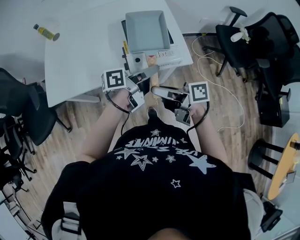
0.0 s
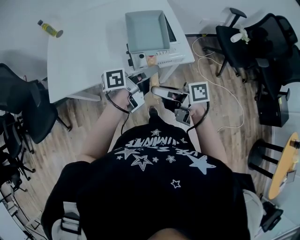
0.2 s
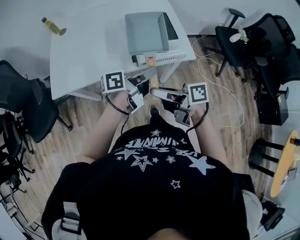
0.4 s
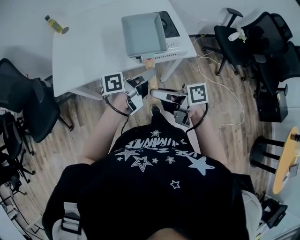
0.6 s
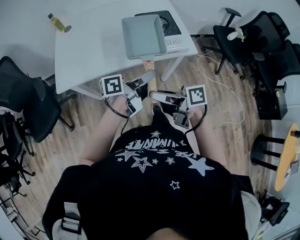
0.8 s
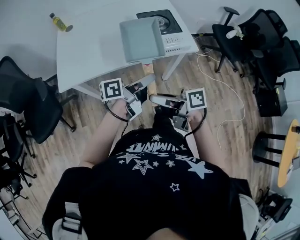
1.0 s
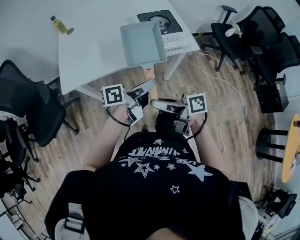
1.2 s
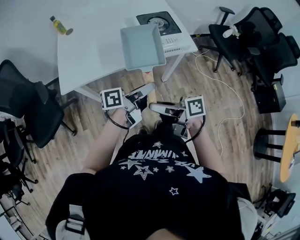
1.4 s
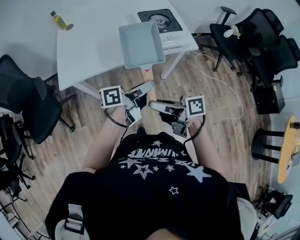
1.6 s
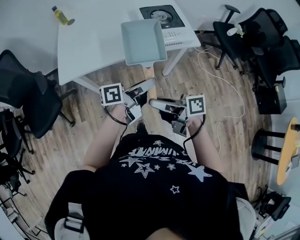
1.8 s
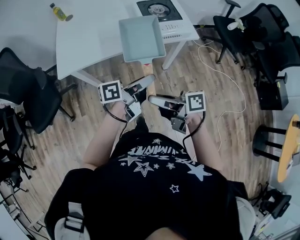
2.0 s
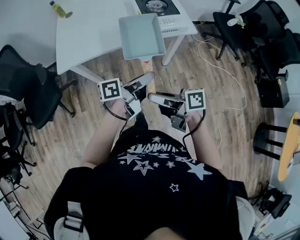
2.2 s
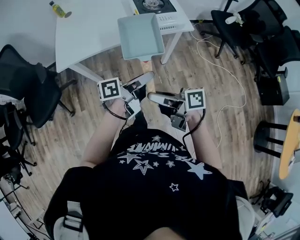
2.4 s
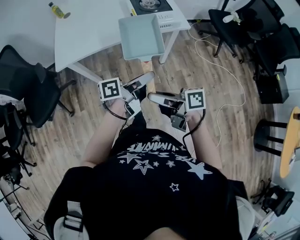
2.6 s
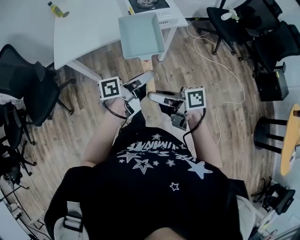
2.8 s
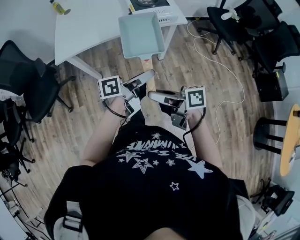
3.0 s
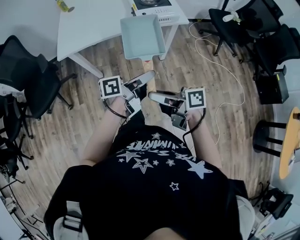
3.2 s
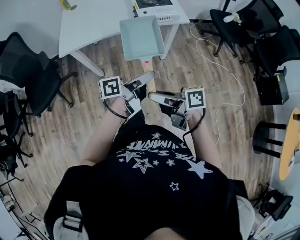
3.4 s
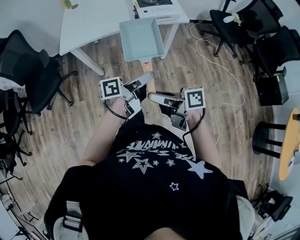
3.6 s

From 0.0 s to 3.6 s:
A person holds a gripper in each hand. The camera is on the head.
From 0.0 s to 1.8 s: The right gripper shifts by approximately 25 cm. Meanwhile the left gripper changes place by about 25 cm.
From 1.8 s to 3.6 s: The right gripper moves roughly 20 cm; the left gripper moves approximately 20 cm.

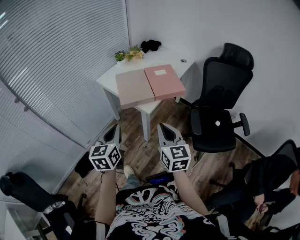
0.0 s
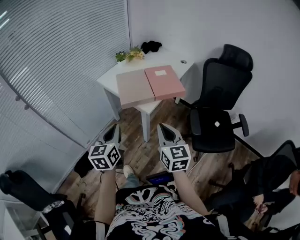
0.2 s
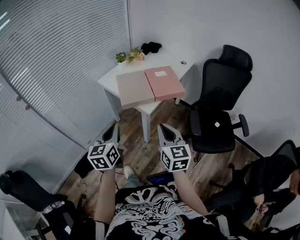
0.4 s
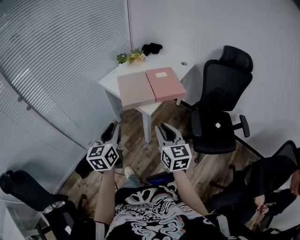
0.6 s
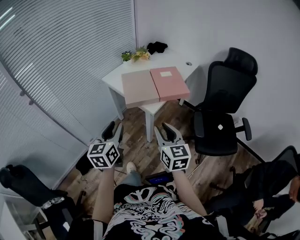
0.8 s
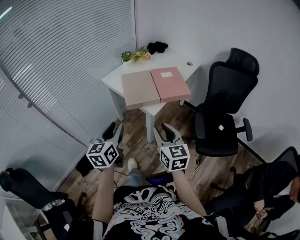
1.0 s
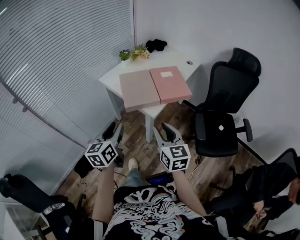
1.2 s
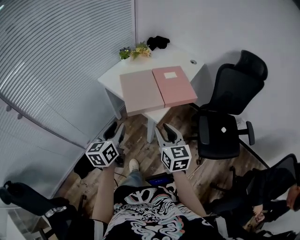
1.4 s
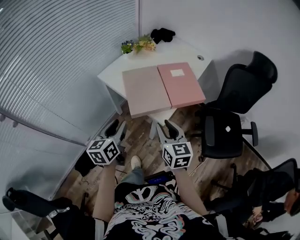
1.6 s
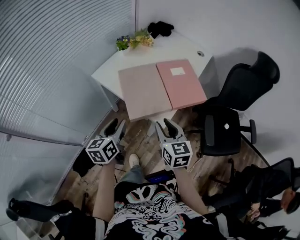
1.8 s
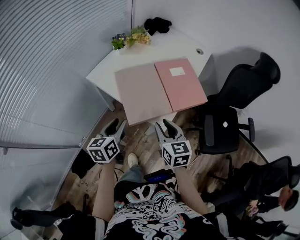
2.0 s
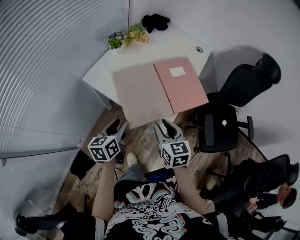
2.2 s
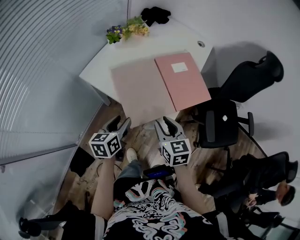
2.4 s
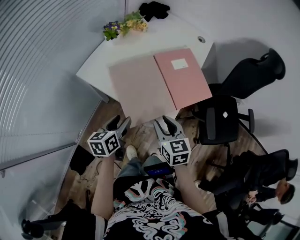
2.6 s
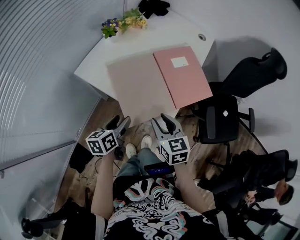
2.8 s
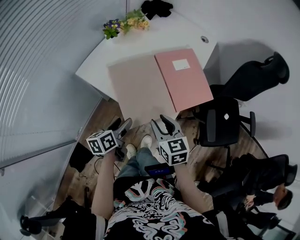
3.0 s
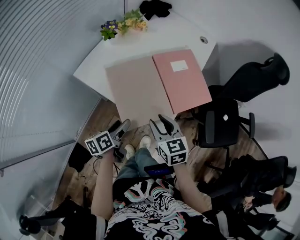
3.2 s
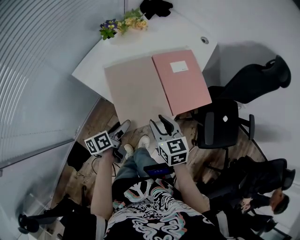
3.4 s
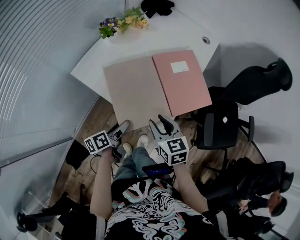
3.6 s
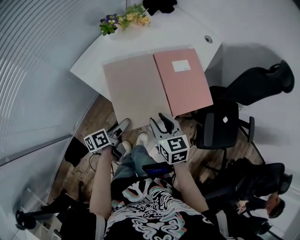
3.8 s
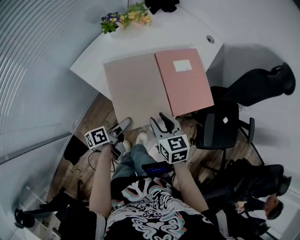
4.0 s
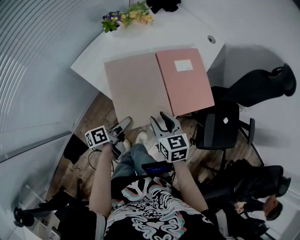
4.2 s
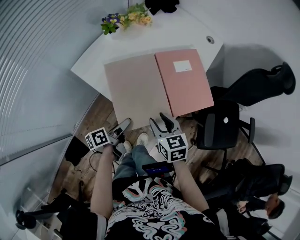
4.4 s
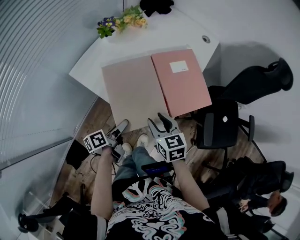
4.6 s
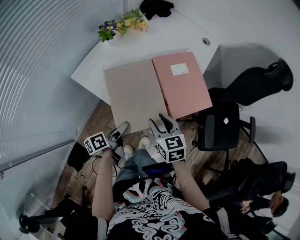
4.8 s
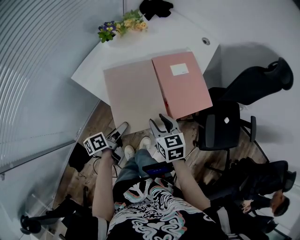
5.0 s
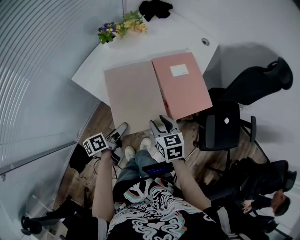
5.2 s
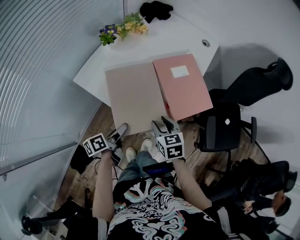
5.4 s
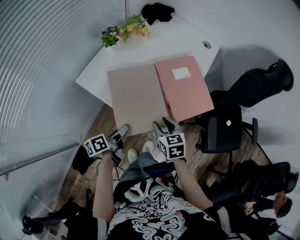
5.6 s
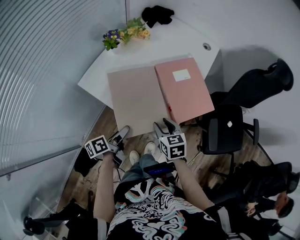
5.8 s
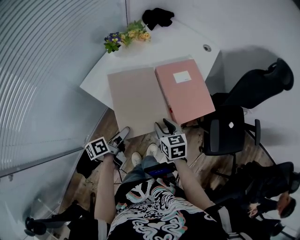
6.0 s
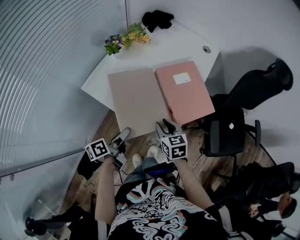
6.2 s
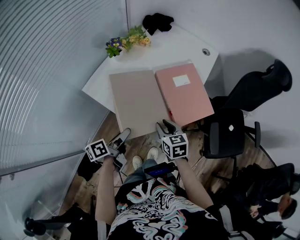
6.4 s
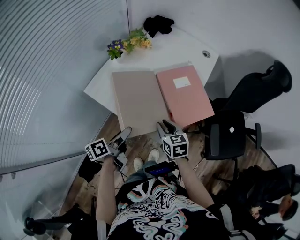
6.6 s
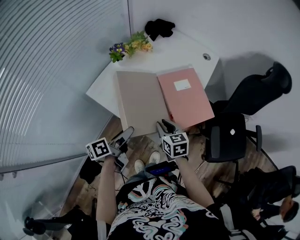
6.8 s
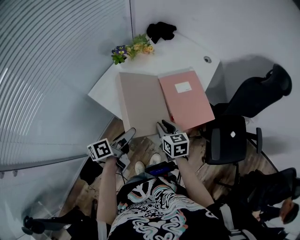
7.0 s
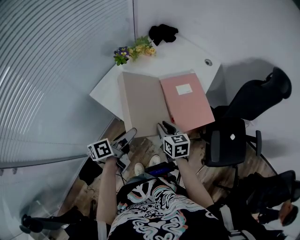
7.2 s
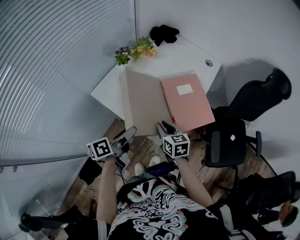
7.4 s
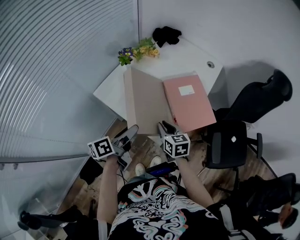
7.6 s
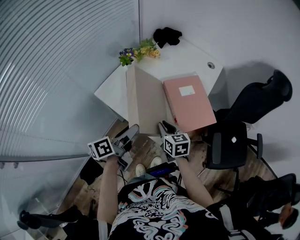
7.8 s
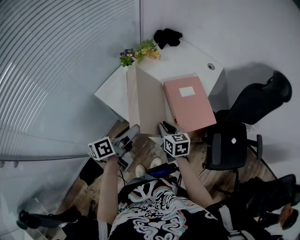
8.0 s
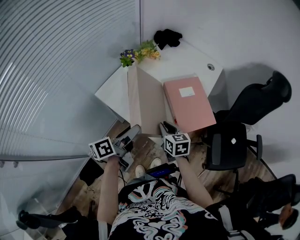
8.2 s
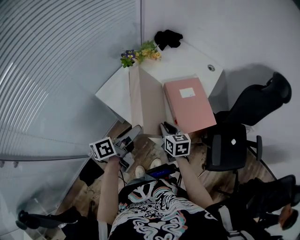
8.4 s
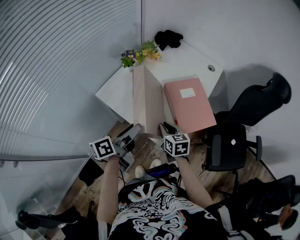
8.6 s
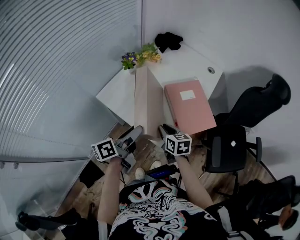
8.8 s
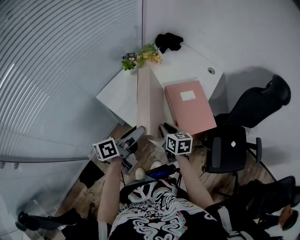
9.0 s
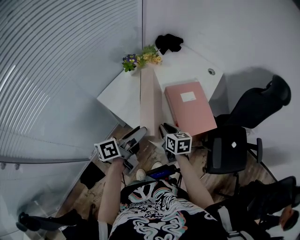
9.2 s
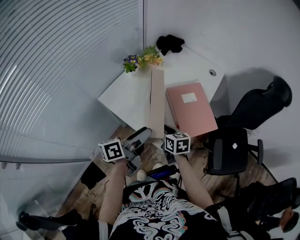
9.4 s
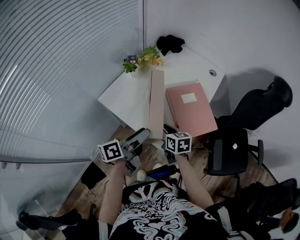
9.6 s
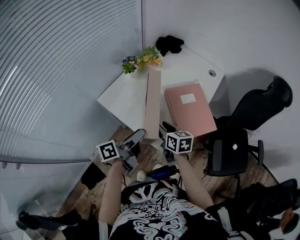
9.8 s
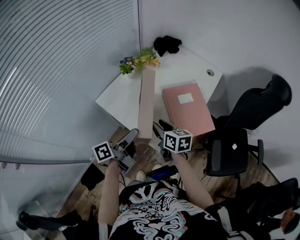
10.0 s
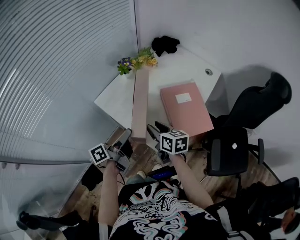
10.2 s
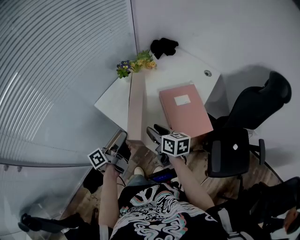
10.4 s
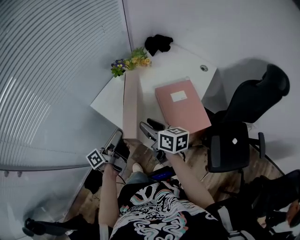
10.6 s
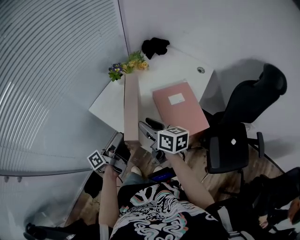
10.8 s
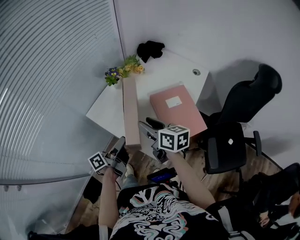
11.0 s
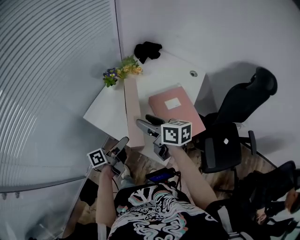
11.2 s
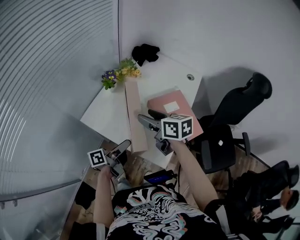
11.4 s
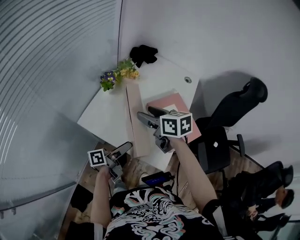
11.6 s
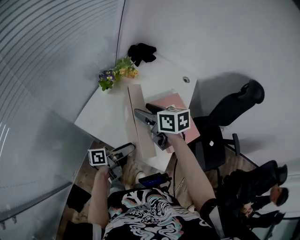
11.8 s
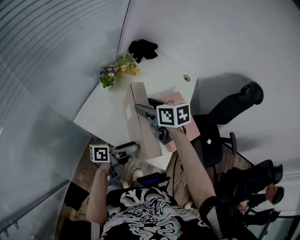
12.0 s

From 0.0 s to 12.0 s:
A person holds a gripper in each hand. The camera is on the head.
From 0.0 s to 1.6 s: The right gripper travels forward, downward and to the left by roughly 20 cm. Meanwhile the left gripper moves forward, approximately 15 cm, and opens up.
From 1.6 s to 3.0 s: The left gripper travels downward and forward by approximately 20 cm, turns by about 30 degrees, and opens up. Meanwhile the right gripper travels forward and downward by some 15 cm.
From 3.0 s to 4.4 s: The left gripper swivels about 30 degrees.
From 4.4 s to 6.0 s: The left gripper ends up approximately 5 cm from where it was.
From 6.0 s to 7.6 s: The left gripper travels upward by approximately 10 cm.
From 7.6 s to 9.0 s: There are only small adjustments of the grippers.
From 9.0 s to 10.4 s: The right gripper travels upward by approximately 5 cm.
From 10.4 s to 12.0 s: The left gripper ends up roughly 10 cm from where it was, and changes its angle by about 40 degrees. Meanwhile the right gripper shifts by some 20 cm, and opens up.

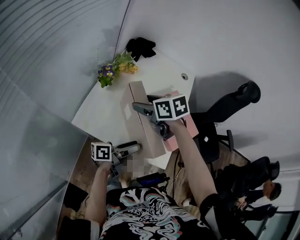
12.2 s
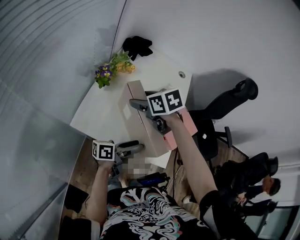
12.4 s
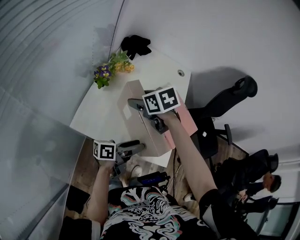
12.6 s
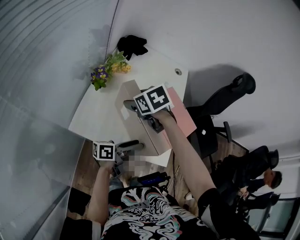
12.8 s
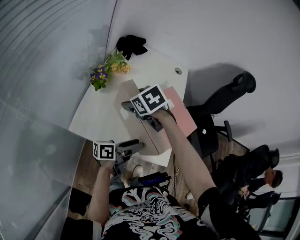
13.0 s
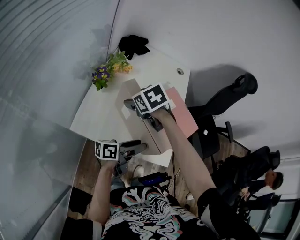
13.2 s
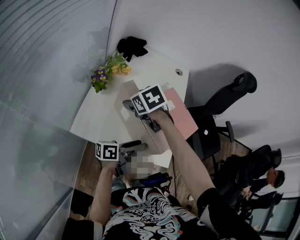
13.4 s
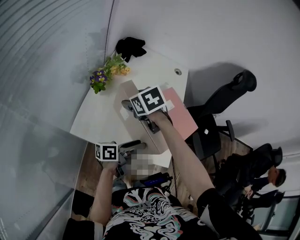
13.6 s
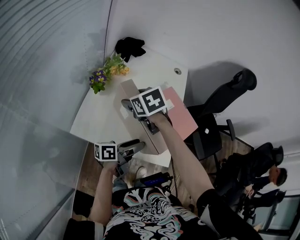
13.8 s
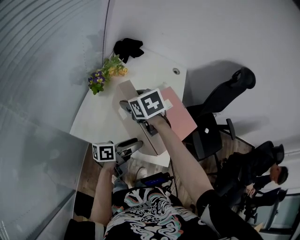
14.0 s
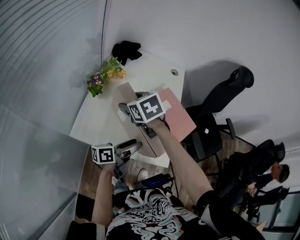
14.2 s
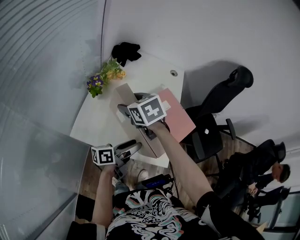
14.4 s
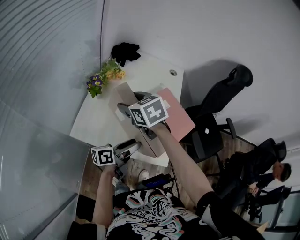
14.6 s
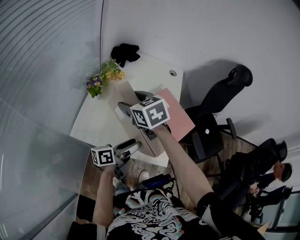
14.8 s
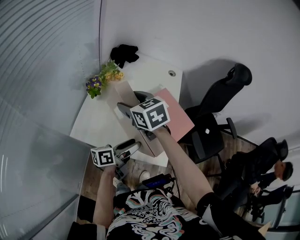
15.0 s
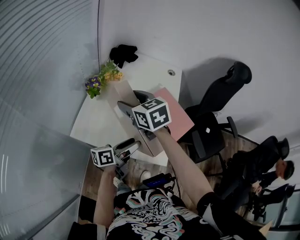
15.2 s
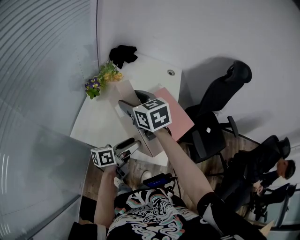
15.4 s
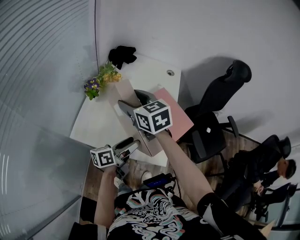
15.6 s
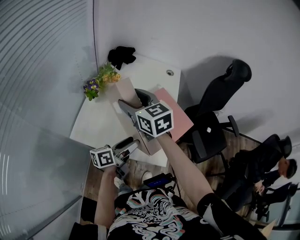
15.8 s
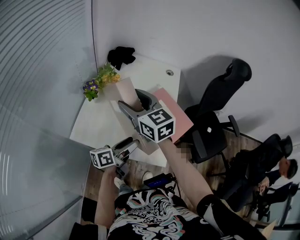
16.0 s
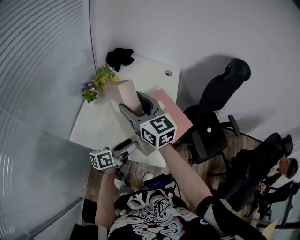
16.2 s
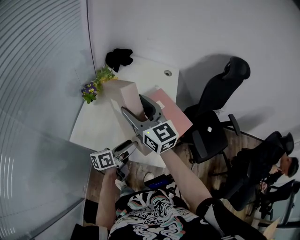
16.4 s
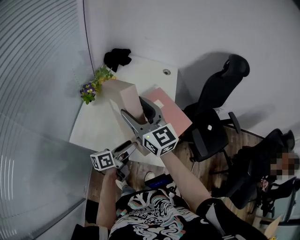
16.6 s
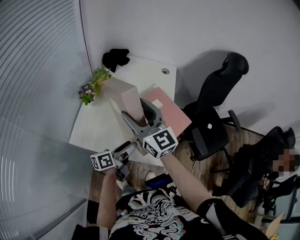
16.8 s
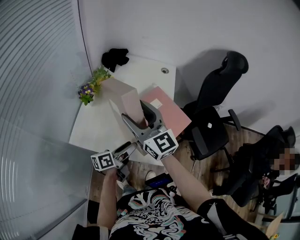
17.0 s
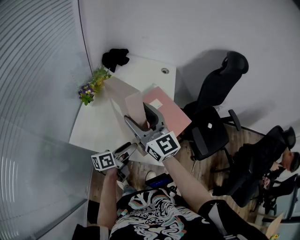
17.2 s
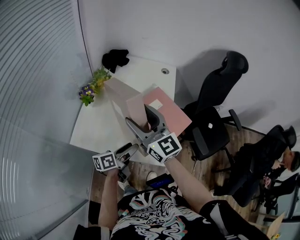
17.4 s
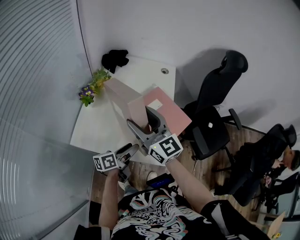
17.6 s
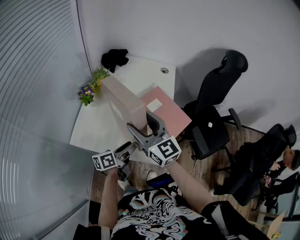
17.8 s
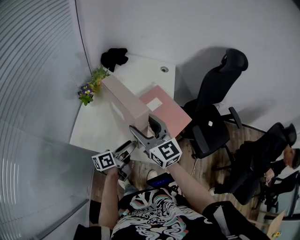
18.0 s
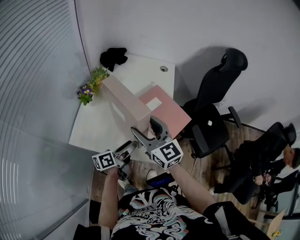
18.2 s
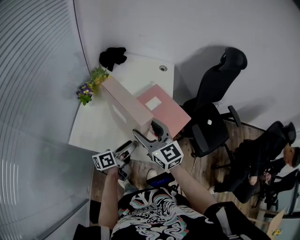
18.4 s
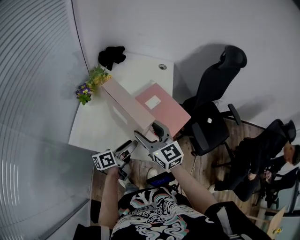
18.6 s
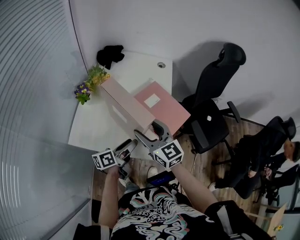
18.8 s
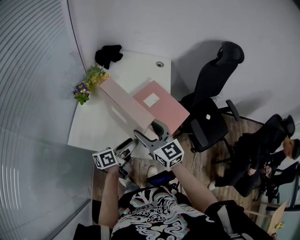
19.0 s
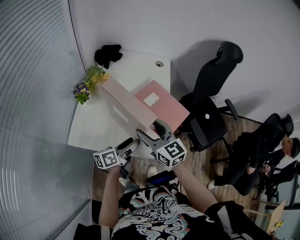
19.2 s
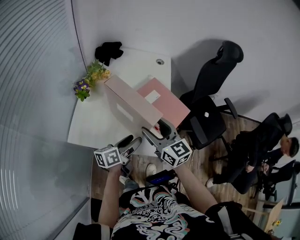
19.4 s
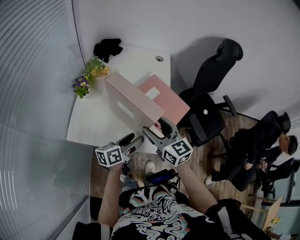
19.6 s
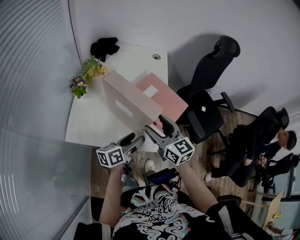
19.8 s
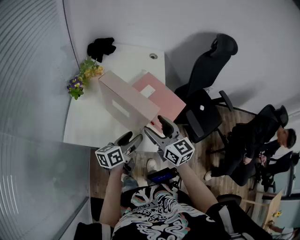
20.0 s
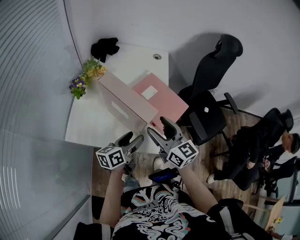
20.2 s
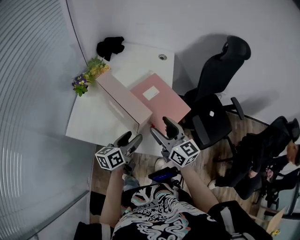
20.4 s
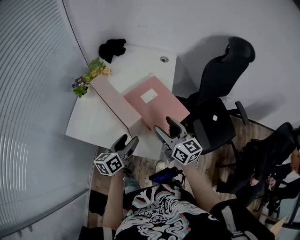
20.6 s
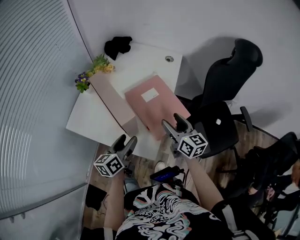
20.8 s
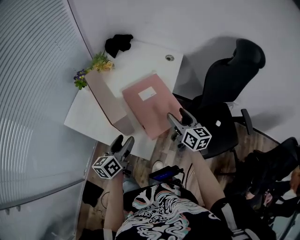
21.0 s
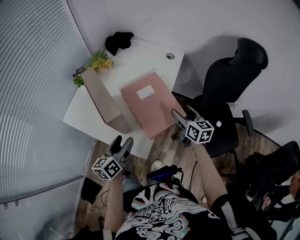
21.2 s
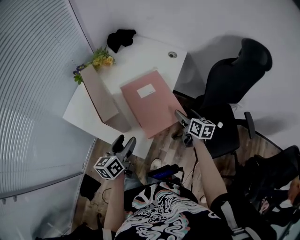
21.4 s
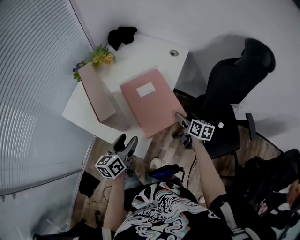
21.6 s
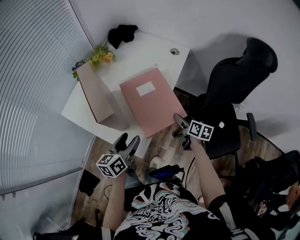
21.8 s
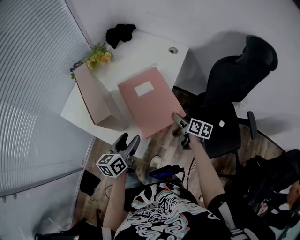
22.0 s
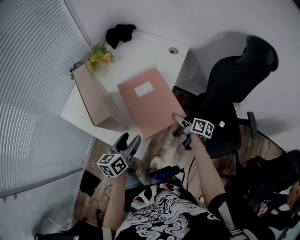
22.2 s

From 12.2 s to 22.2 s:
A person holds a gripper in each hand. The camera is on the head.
From 13.6 s to 15.0 s: The right gripper is displaced upward by some 5 cm, and turns by roughly 20 degrees.
From 15.0 s to 16.4 s: The right gripper shifts about 10 cm upward and to the right, and angles its fingers upward, by about 30 degrees.
From 16.4 s to 18.0 s: The right gripper goes some 5 cm downward.
From 18.0 s to 19.4 s: The right gripper ends up some 5 cm from where it was.
From 19.4 s to 20.8 s: The left gripper changes its angle by roughly 30 degrees; the right gripper goes some 15 cm to the right.
From 20.8 s to 22.2 s: The left gripper heads to the right, covering roughly 10 cm, while the right gripper goes about 20 cm downward and to the right, and changes its angle by roughly 40 degrees.
